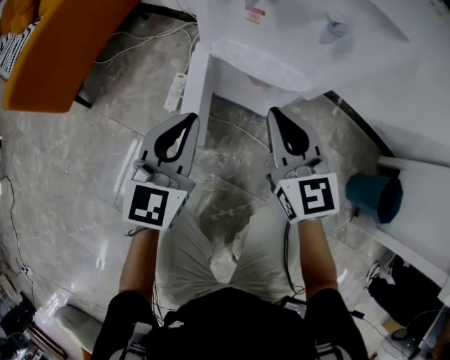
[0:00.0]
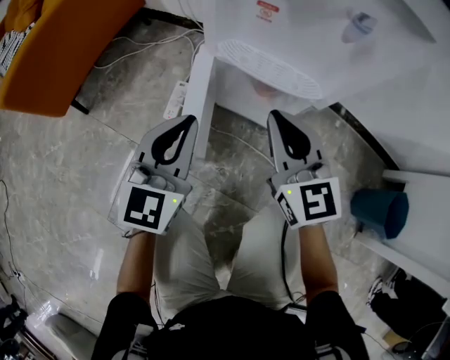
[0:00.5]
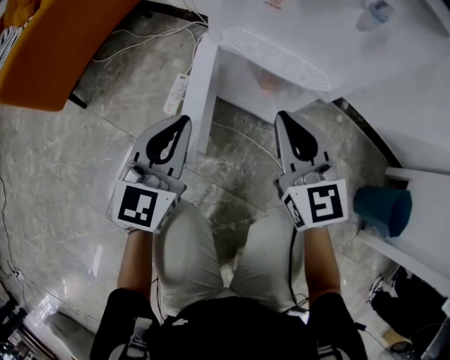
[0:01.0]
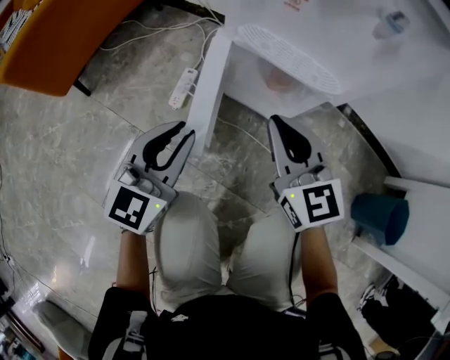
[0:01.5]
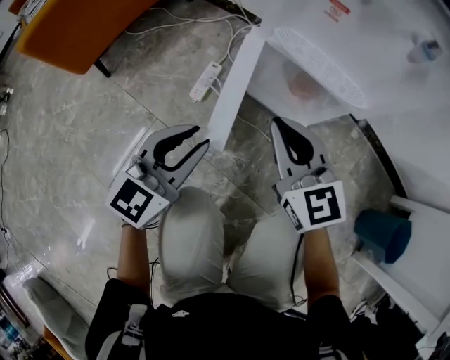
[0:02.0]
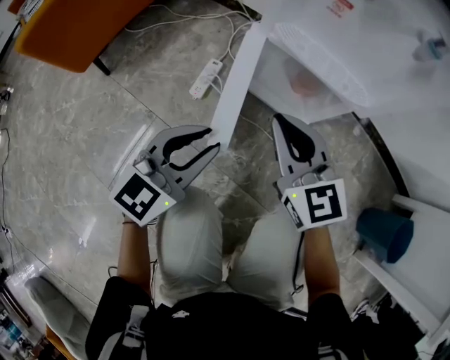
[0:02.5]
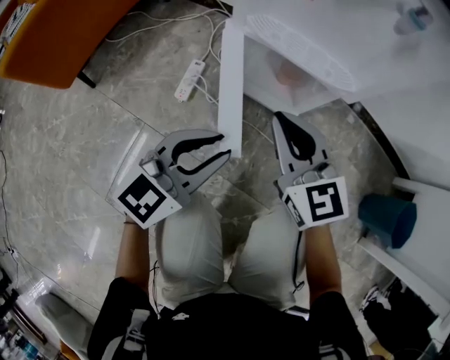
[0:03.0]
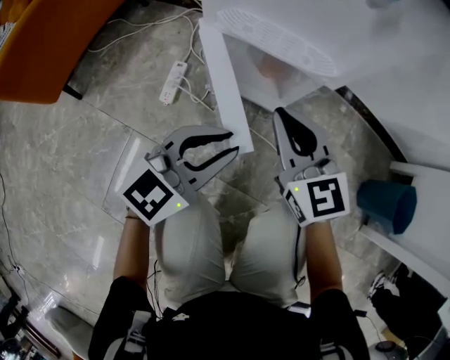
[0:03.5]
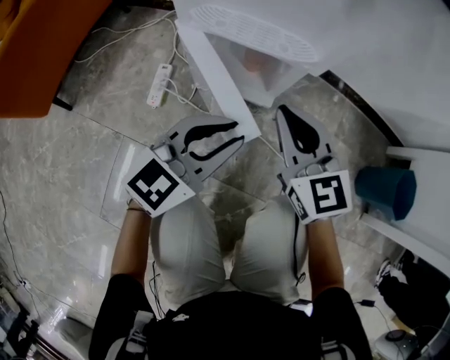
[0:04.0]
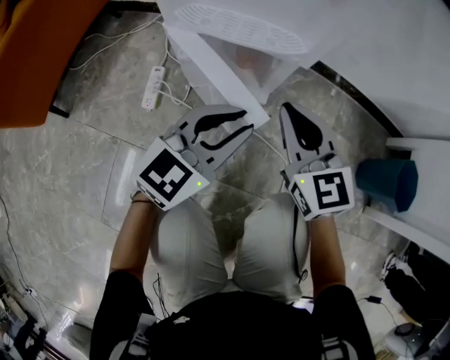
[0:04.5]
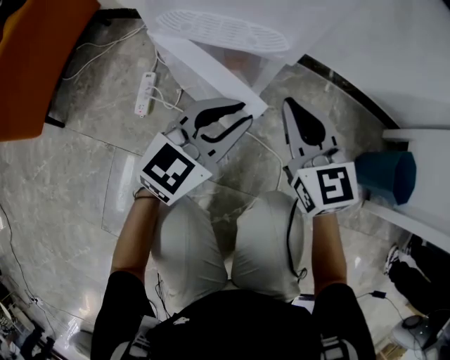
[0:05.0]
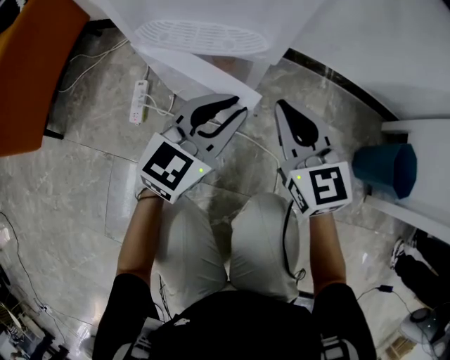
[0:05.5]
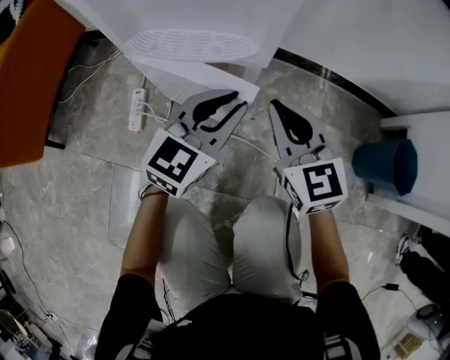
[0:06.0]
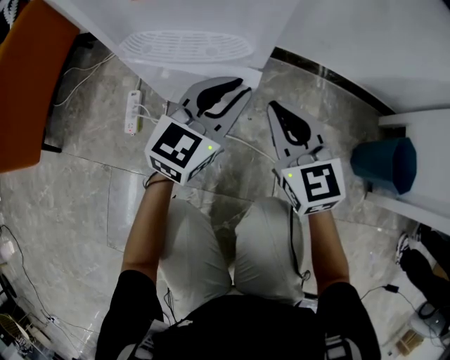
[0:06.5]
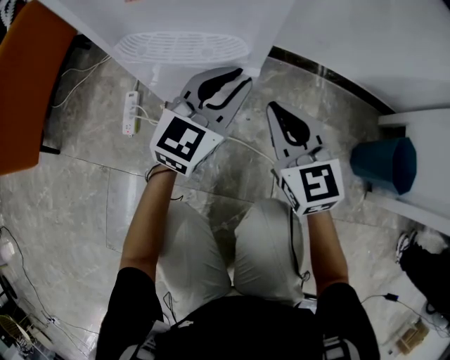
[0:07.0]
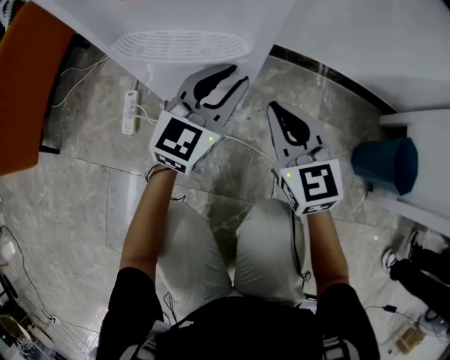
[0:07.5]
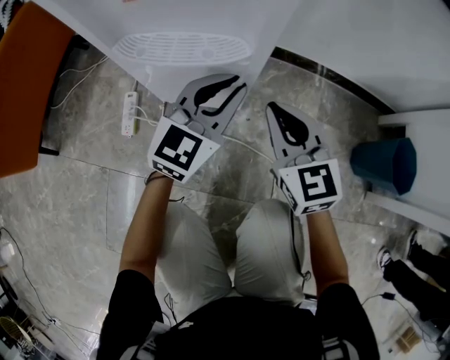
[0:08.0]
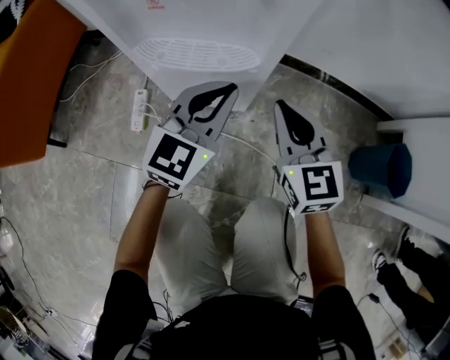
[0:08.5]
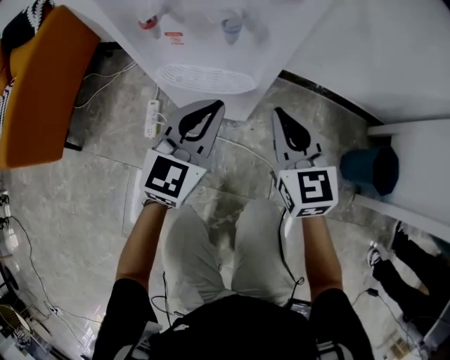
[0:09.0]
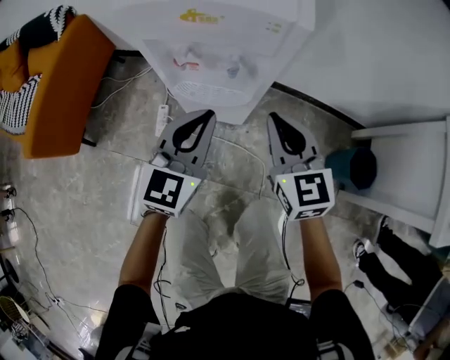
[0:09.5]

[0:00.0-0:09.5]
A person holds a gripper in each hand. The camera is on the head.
0:00.0 to 0:02.0: The left gripper shifts approximately 10 cm downward, backward and to the left, and opens up. Meanwhile the right gripper moves to the left and downward, some 10 cm.
0:02.0 to 0:04.0: Both grippers travel together to the right, about 15 cm. The left gripper swivels some 30 degrees.
0:04.0 to 0:05.5: The left gripper is displaced forward and to the right by roughly 10 cm. Meanwhile the right gripper shifts some 5 cm to the right.
0:05.5 to 0:07.5: The left gripper travels forward by approximately 10 cm.
0:07.5 to 0:09.5: The two grippers go roughly 25 cm upward. The left gripper closes.

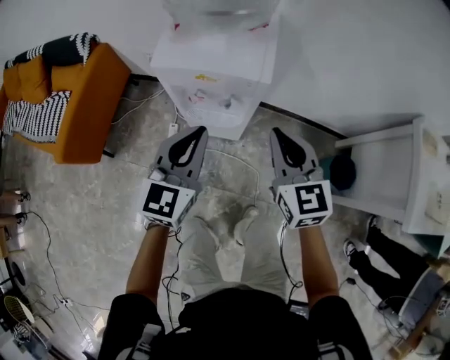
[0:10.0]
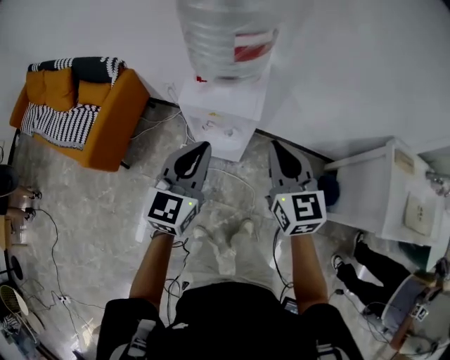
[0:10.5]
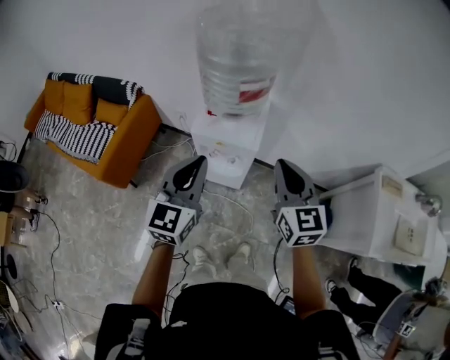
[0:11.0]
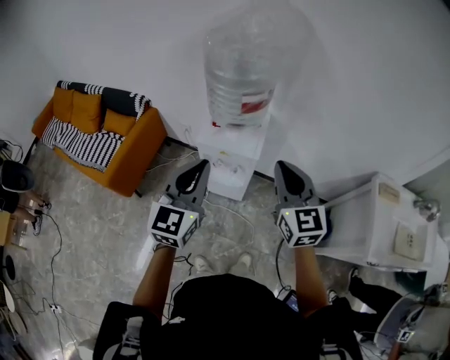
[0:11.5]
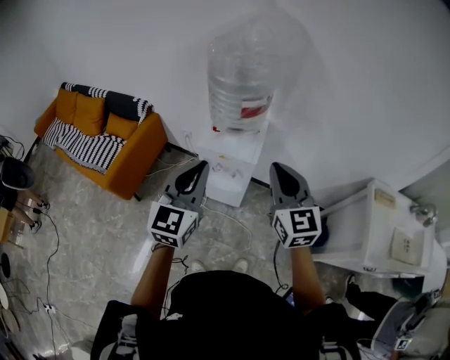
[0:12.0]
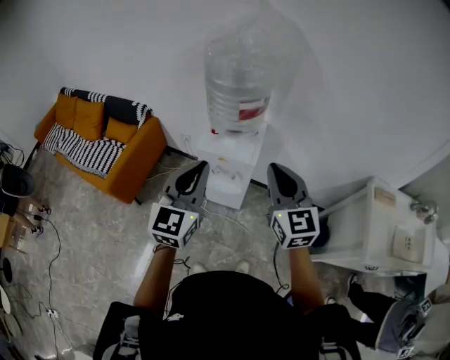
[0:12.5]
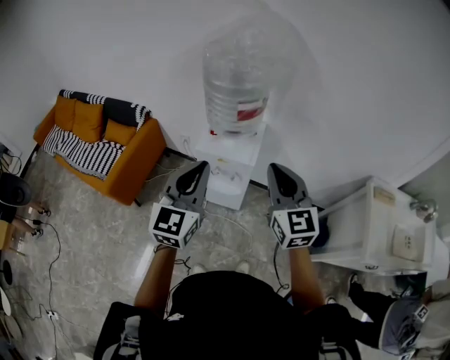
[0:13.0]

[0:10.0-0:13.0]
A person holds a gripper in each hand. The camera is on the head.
0:10.0 to 0:11.5: Both grippers move upward, roughly 30 cm.
0:11.5 to 0:13.0: The grippers move only a little.

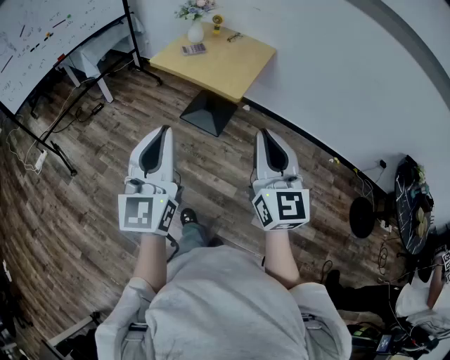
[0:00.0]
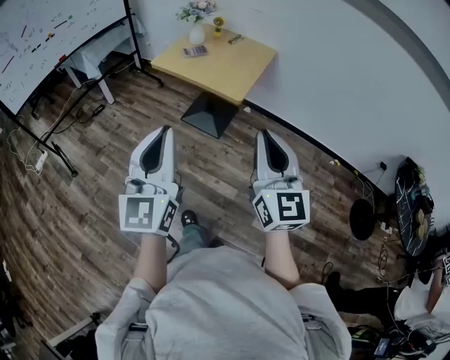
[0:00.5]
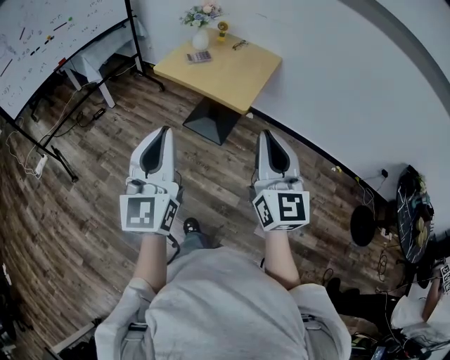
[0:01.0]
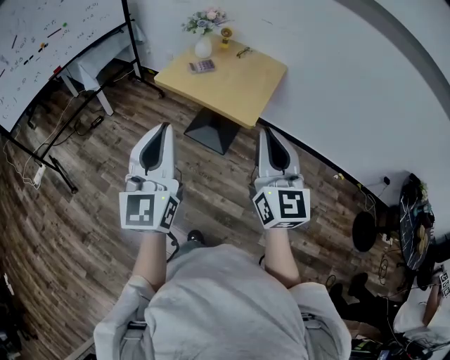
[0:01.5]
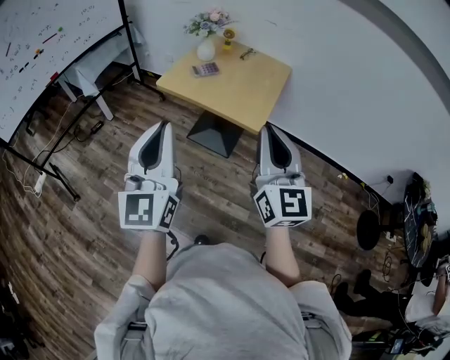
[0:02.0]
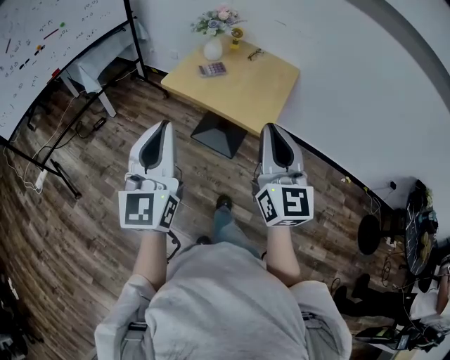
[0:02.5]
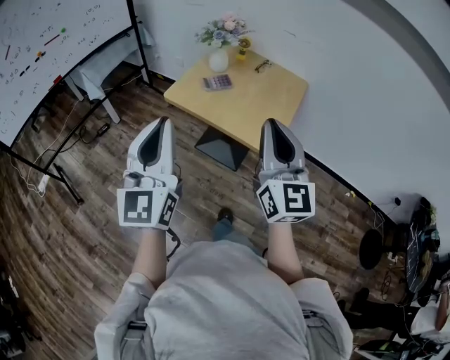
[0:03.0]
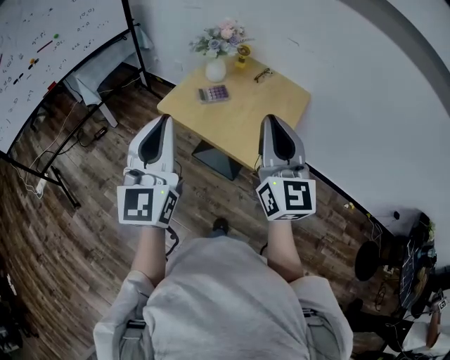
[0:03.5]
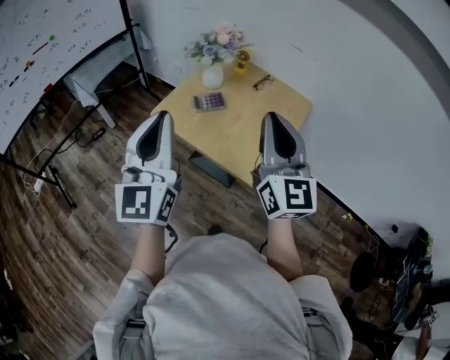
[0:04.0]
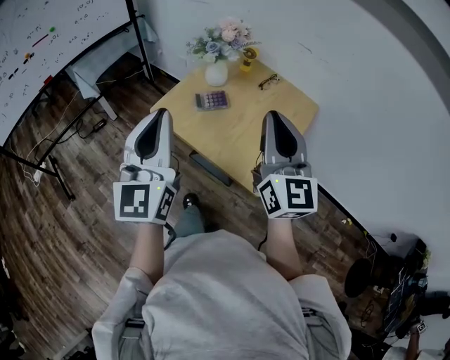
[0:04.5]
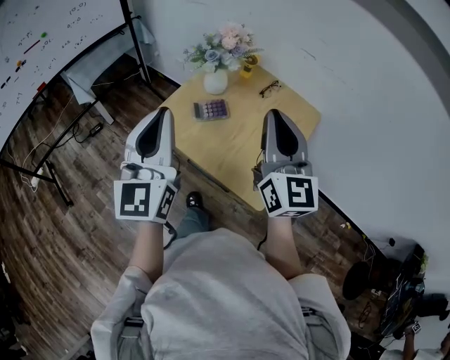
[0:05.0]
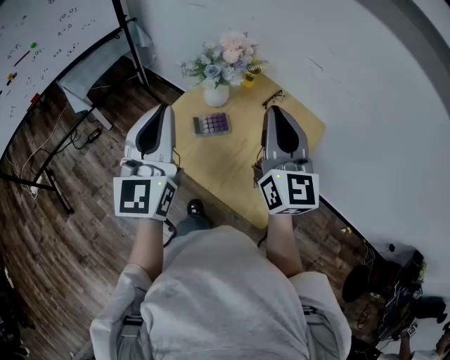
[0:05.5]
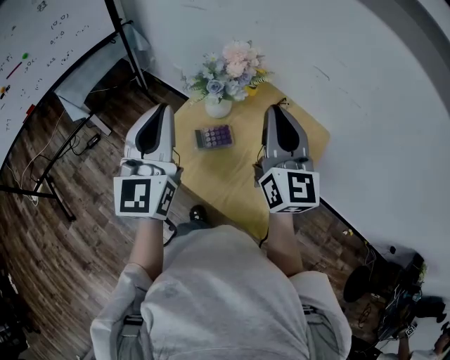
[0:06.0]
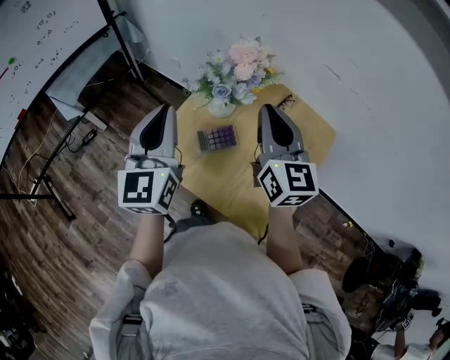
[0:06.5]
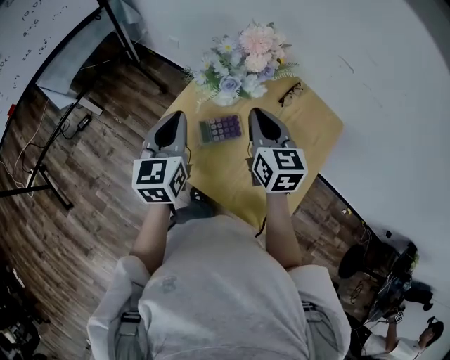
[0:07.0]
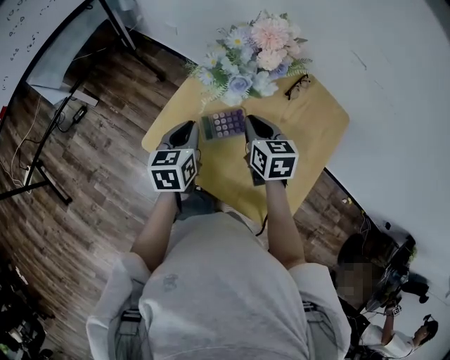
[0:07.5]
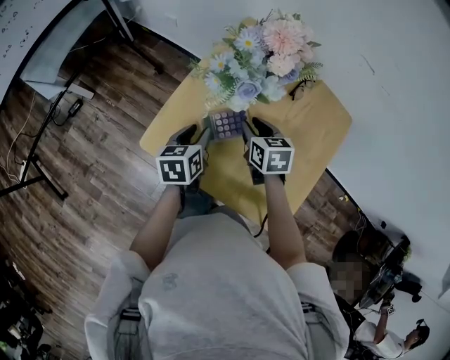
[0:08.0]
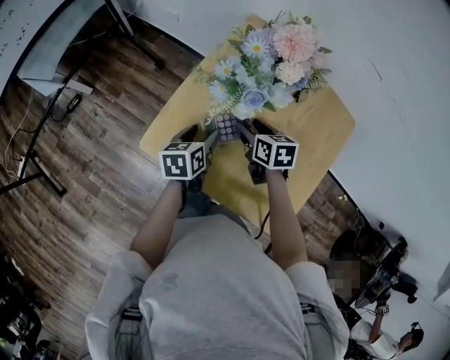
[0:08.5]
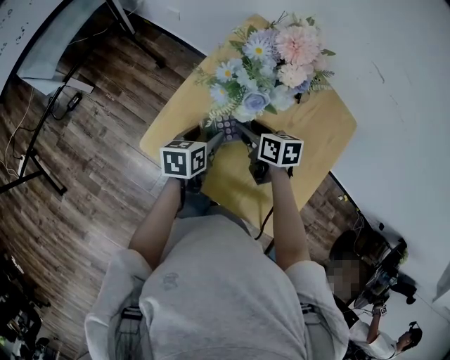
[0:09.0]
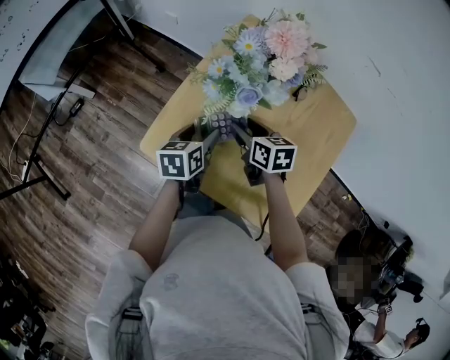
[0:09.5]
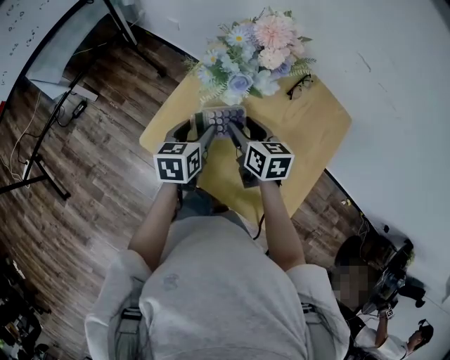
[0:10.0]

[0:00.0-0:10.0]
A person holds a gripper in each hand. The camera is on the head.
0:00.0 to 0:02.0: The grippers both shift forward and to the left by about 20 cm.
0:02.0 to 0:04.0: Both grippers move forward, roughly 30 cm.
0:04.0 to 0:06.0: The two grippers go about 25 cm forward.
0:06.0 to 0:08.0: The grippers both shift downward by roughly 35 cm. The right gripper tilts its fingers approximately 60 degrees downward, and opens. The left gripper tips its fingers downward by approximately 50 degrees, and opens.
0:08.0 to 0:10.0: The left gripper opens its fingers; the right gripper opens up.

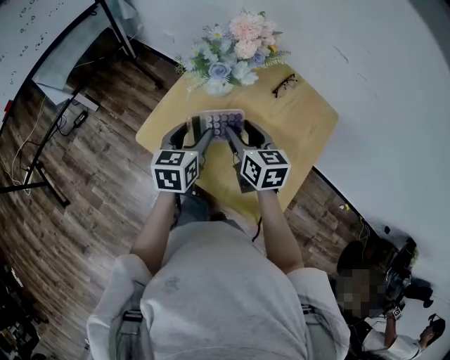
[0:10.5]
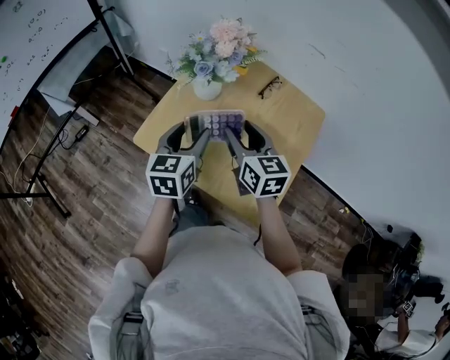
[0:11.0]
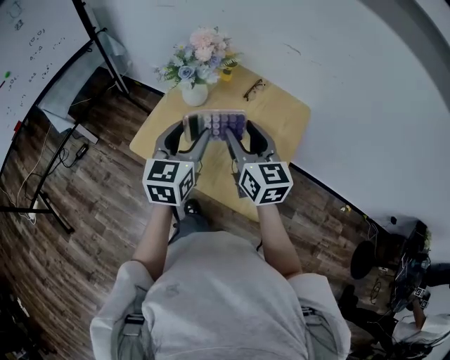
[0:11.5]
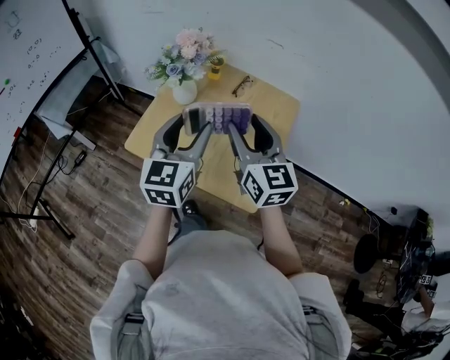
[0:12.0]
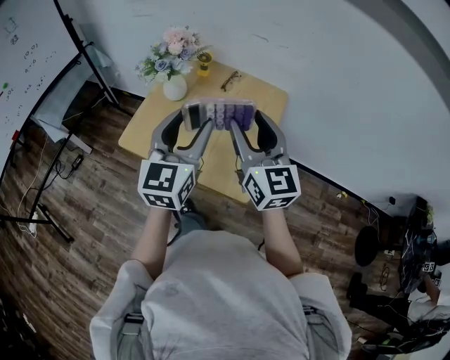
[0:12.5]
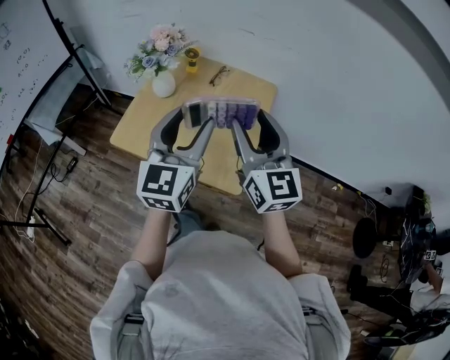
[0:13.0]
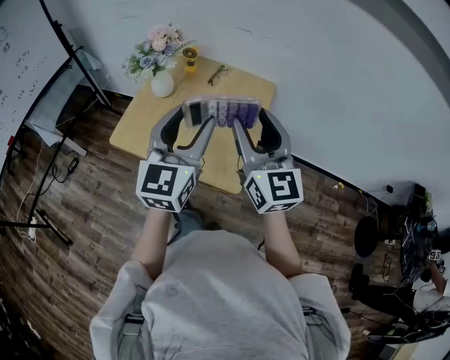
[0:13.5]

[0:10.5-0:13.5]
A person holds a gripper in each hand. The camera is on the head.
0:10.5 to 0:12.0: Both grippers travel together upward, backward and to the right, about 25 cm. The left gripper turns by about 30 degrees. Meanwhile the right gripper changes its angle by approximately 30 degrees.
0:12.0 to 0:13.5: The grippers both shift to the right, backward and upward by approximately 15 cm.

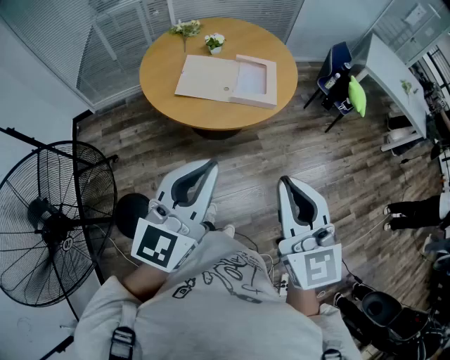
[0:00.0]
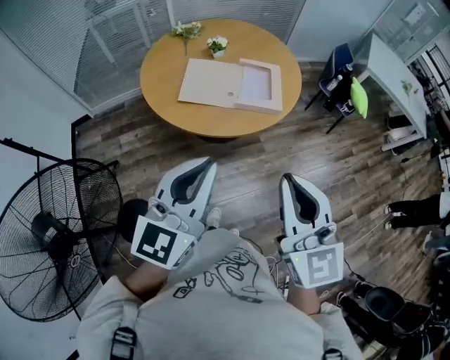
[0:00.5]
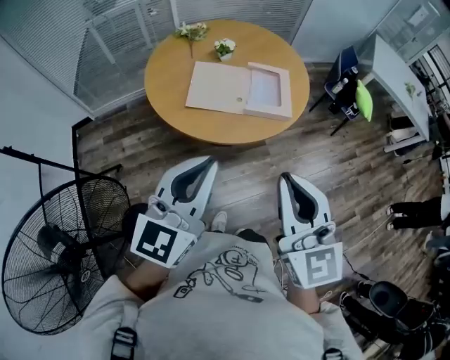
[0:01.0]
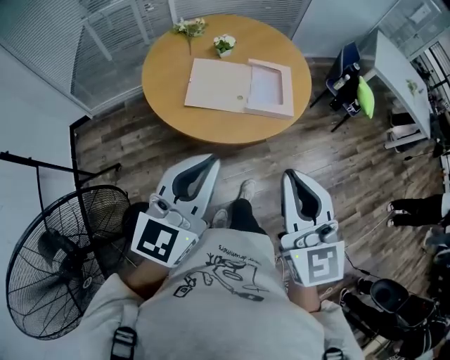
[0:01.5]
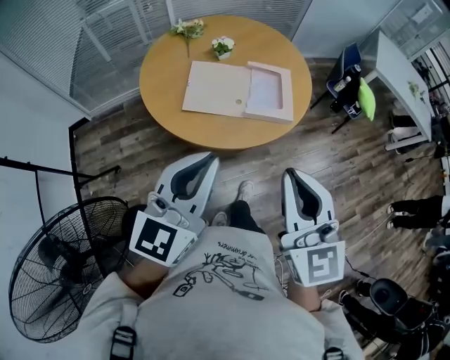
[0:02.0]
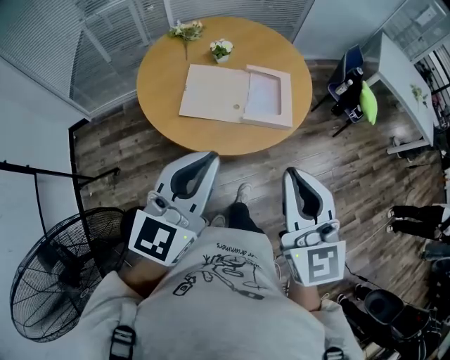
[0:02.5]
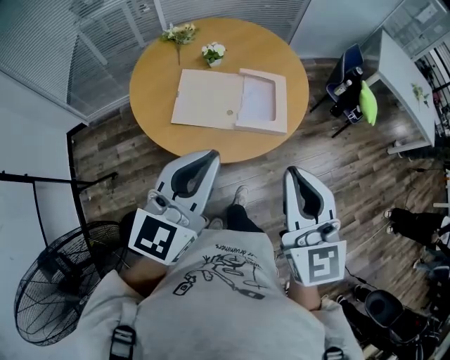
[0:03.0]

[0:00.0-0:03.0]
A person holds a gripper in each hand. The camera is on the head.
0:00.0 to 0:01.5: Both grippers move forward and to the left, some 15 cm.
0:01.5 to 0:03.0: The grippers both shift forward by roughly 15 cm.
